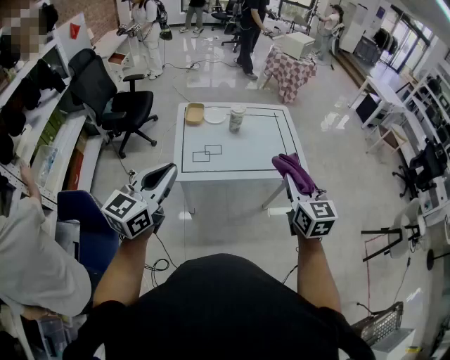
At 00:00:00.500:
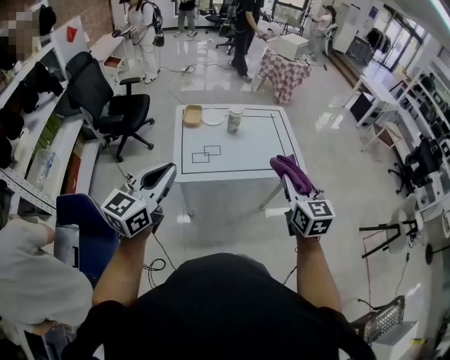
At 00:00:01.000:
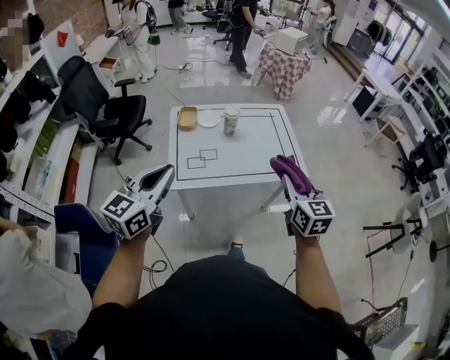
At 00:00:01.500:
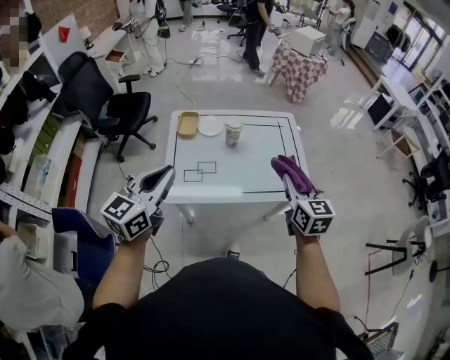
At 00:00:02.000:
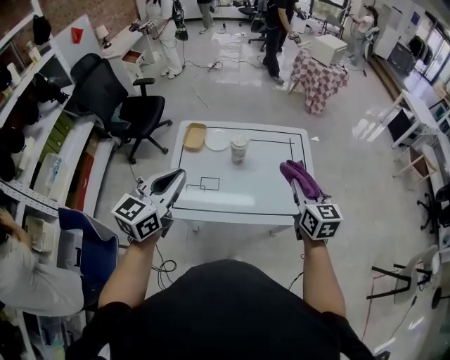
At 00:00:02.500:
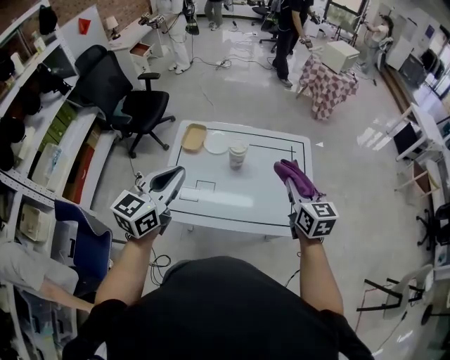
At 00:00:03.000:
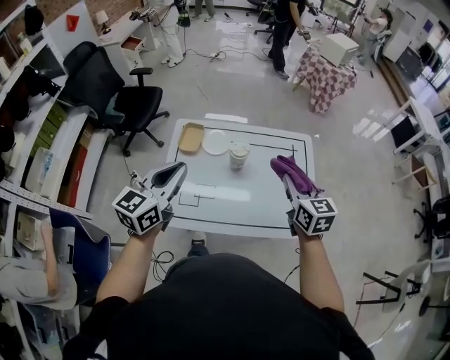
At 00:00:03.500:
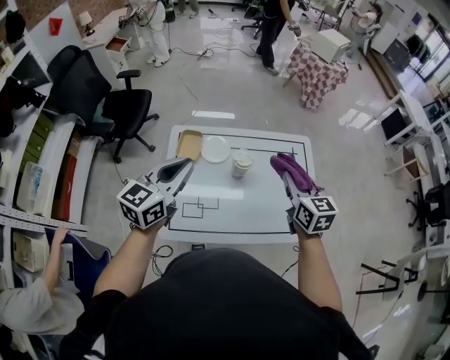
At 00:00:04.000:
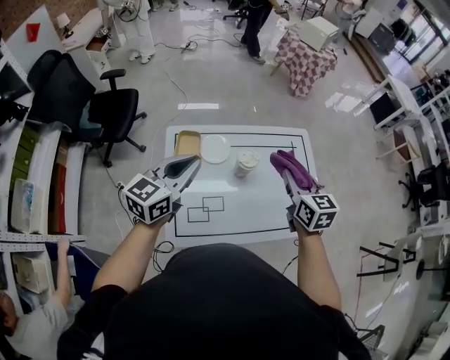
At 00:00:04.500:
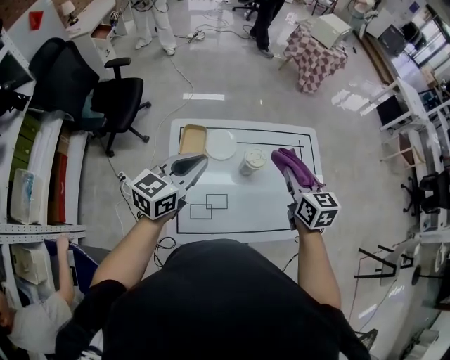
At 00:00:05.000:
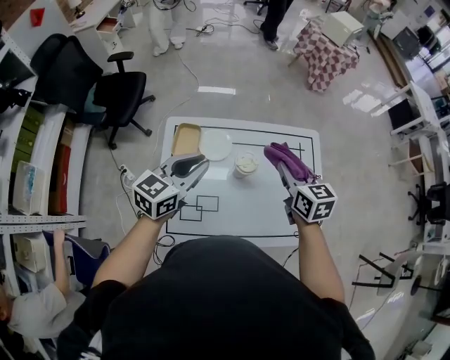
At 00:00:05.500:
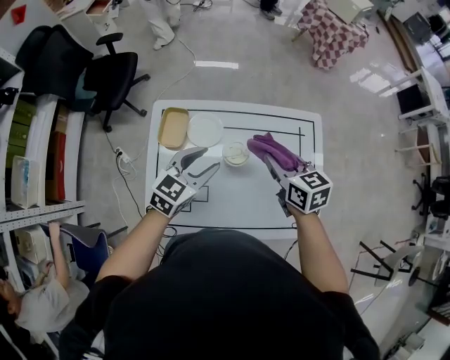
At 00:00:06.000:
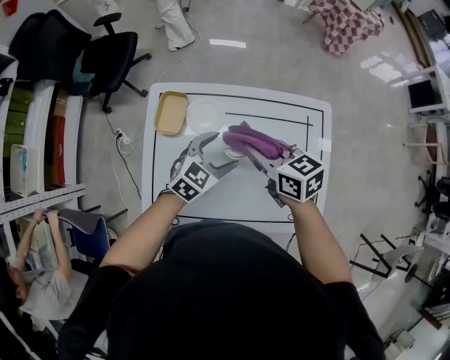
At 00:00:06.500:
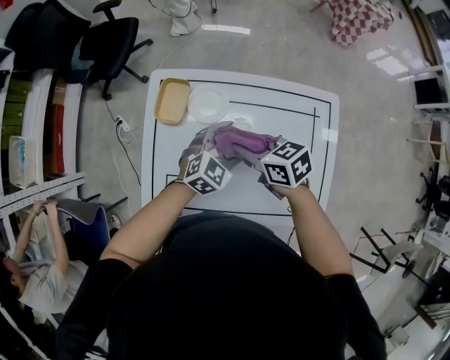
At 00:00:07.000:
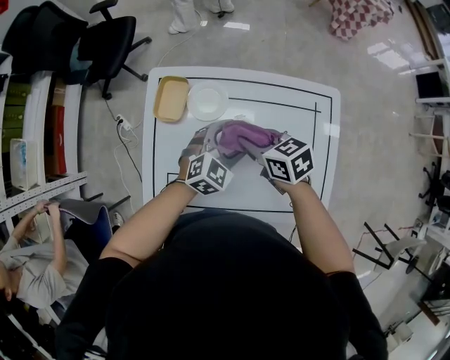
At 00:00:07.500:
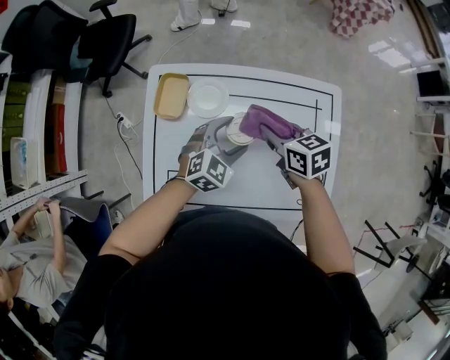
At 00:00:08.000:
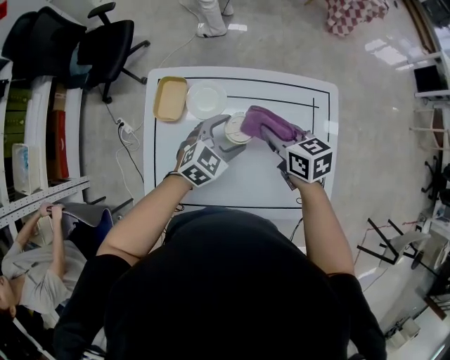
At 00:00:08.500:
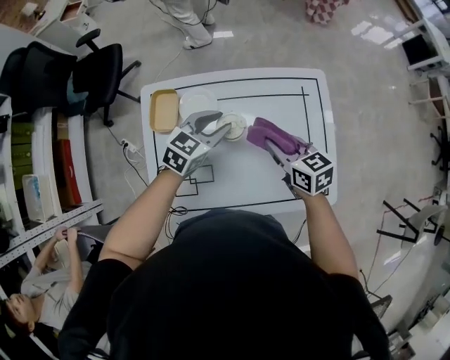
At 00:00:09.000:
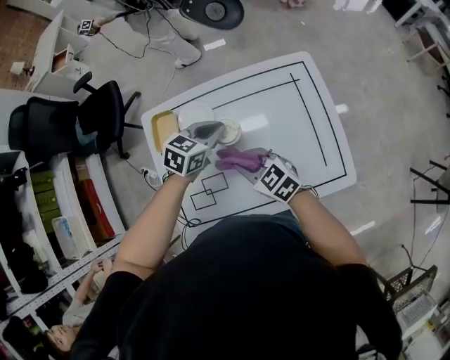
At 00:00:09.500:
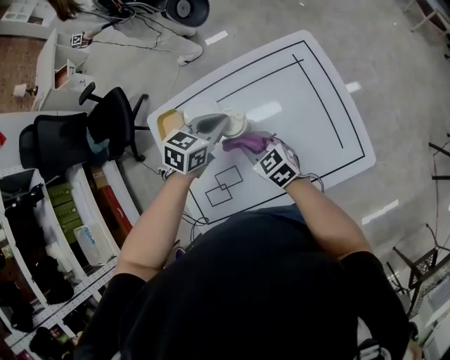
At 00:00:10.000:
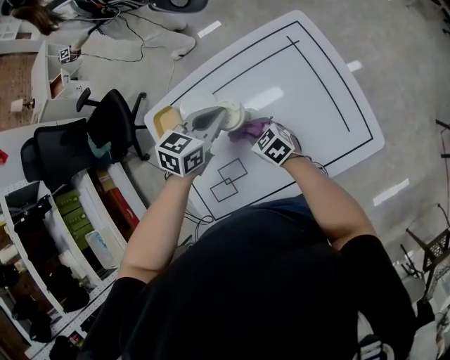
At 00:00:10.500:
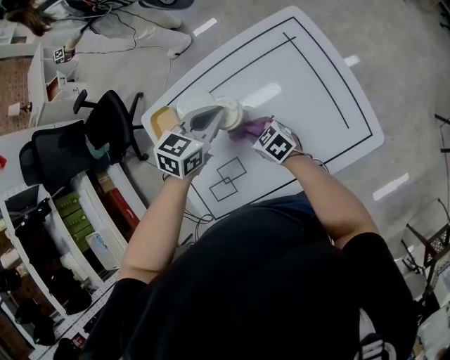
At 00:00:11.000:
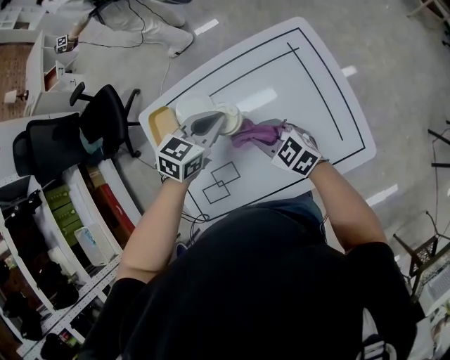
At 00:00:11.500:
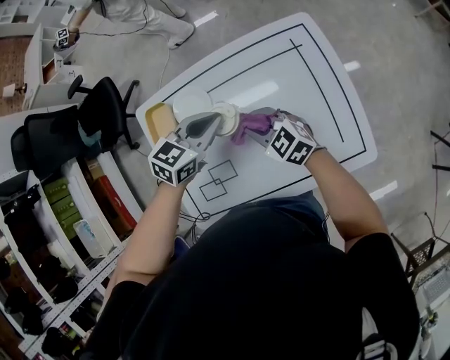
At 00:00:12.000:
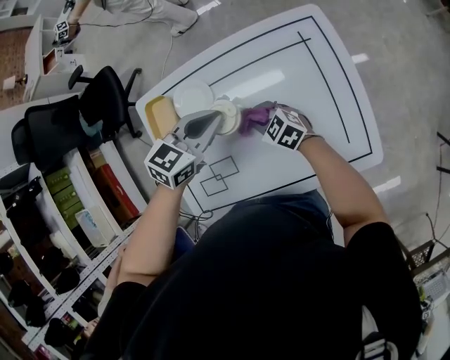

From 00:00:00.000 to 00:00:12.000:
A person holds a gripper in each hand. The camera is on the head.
From 00:00:00.000 to 00:00:02.000: Both grippers move forward, about 35 cm.
From 00:00:02.000 to 00:00:04.000: The grippers both shift forward and to the left by approximately 30 cm.
From 00:00:04.000 to 00:00:06.000: The left gripper shifts some 35 cm downward, to the right and forward, changes its angle by roughly 30 degrees, and opens its fingers. Meanwhile the right gripper moves forward and downward, about 20 cm, and changes its angle by about 40 degrees.
From 00:00:06.000 to 00:00:08.000: The right gripper is displaced downward by approximately 5 cm.
From 00:00:08.000 to 00:00:10.000: The left gripper ends up about 5 cm from where it was, and closes its fingers. Meanwhile the right gripper is displaced downward and backward by some 20 cm.
From 00:00:10.000 to 00:00:12.000: The right gripper travels upward and back again, some 10 cm each way, and turns by about 20 degrees.

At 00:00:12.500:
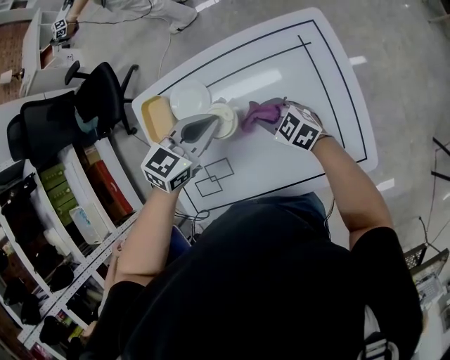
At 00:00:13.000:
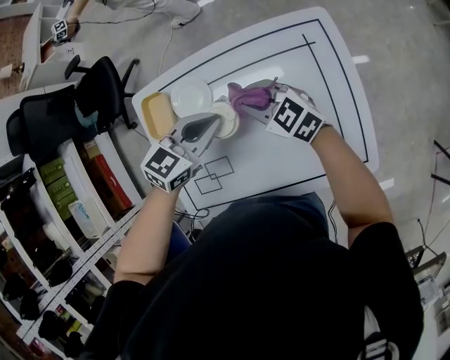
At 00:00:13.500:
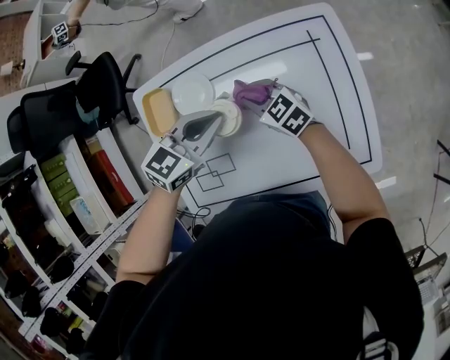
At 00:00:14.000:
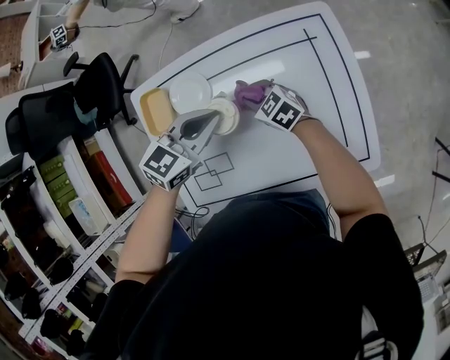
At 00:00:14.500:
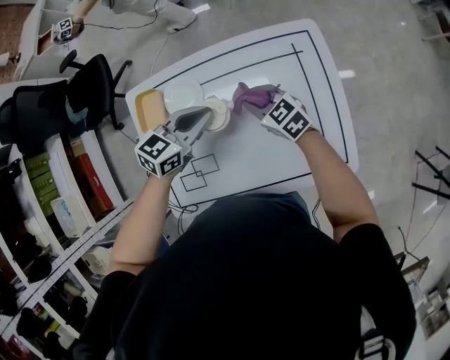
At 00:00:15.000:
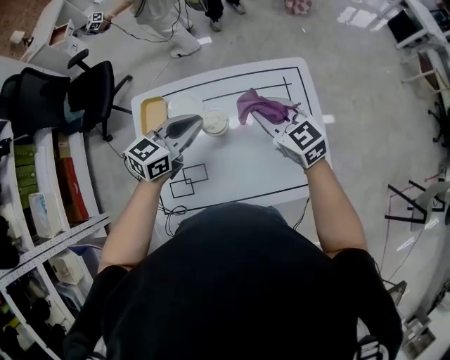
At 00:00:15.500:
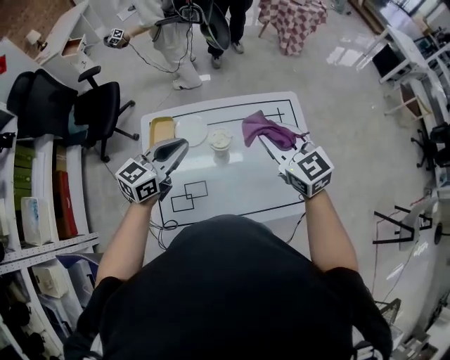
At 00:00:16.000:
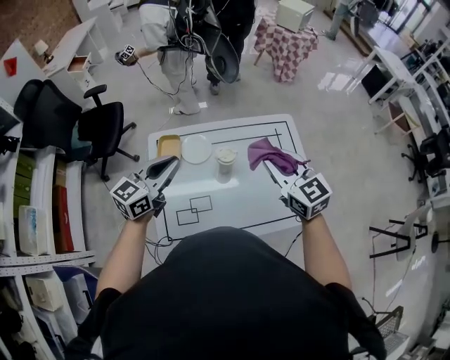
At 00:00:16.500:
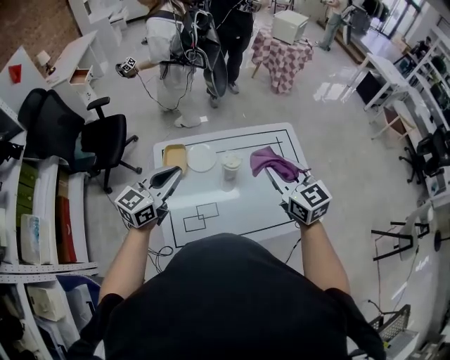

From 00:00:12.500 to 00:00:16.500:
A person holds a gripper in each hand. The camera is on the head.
From 00:00:12.500 to 00:00:14.500: The right gripper moves up and down over some 10 cm, changing direction 2 times.
From 00:00:14.500 to 00:00:16.500: The left gripper travels upward, to the left and backward by roughly 35 cm, and swivels some 30 degrees; the right gripper heads upward and backward, covering roughly 40 cm, and changes its angle by roughly 30 degrees.

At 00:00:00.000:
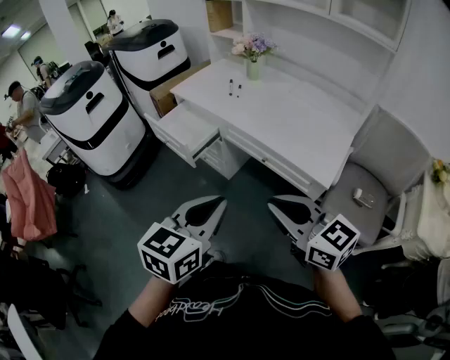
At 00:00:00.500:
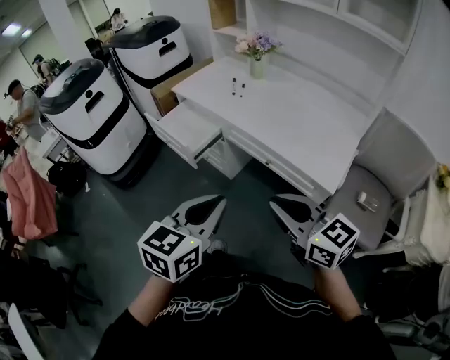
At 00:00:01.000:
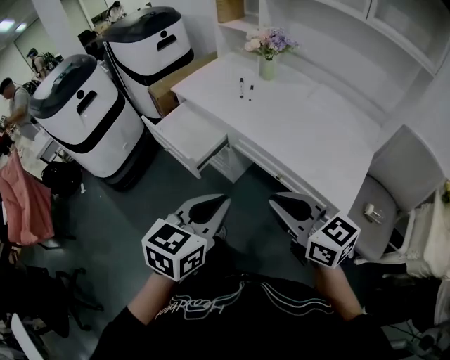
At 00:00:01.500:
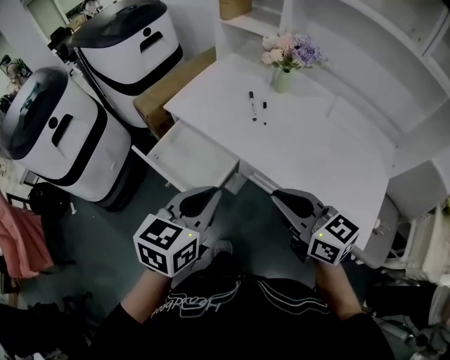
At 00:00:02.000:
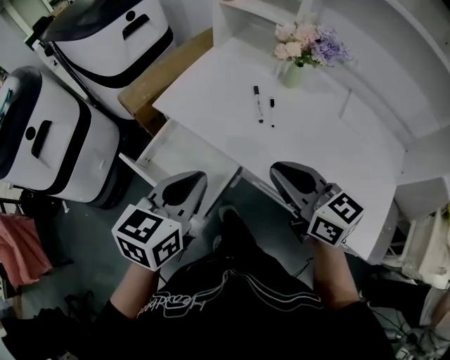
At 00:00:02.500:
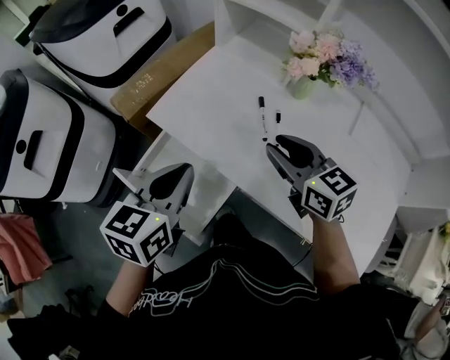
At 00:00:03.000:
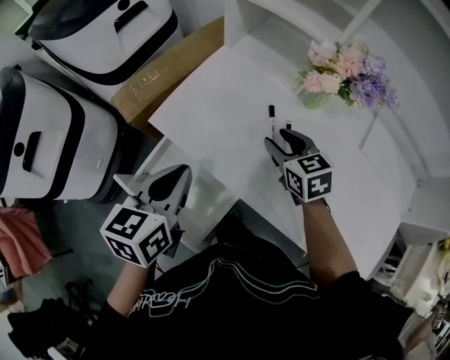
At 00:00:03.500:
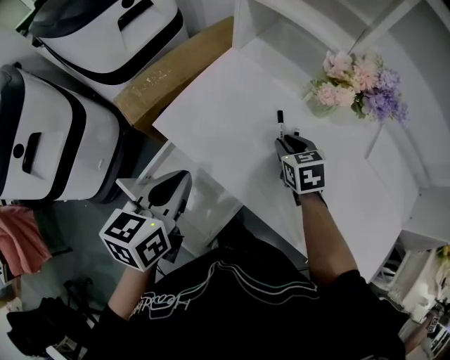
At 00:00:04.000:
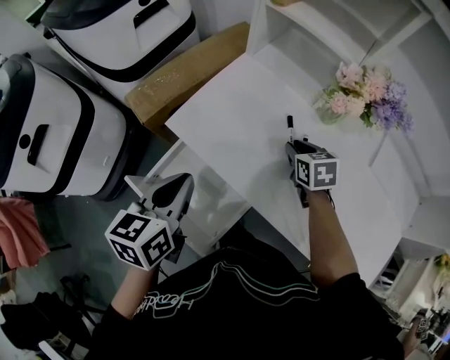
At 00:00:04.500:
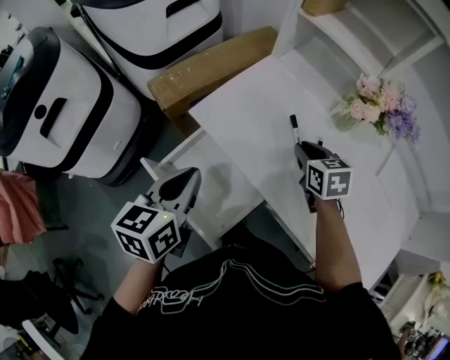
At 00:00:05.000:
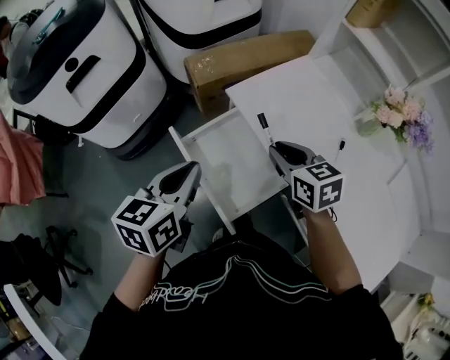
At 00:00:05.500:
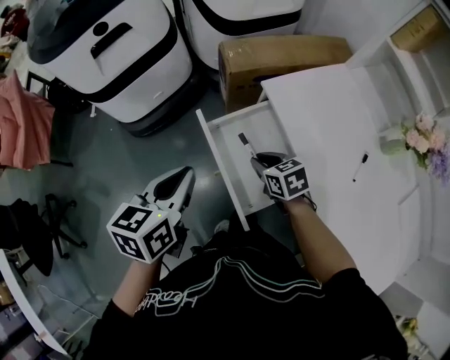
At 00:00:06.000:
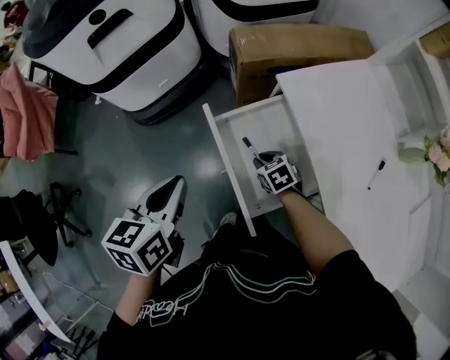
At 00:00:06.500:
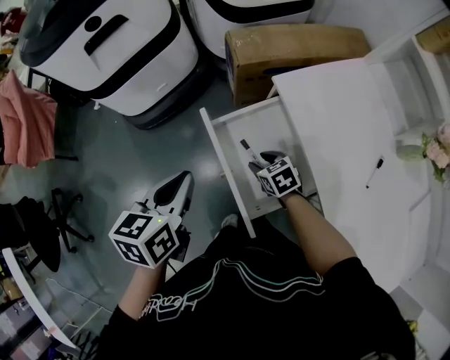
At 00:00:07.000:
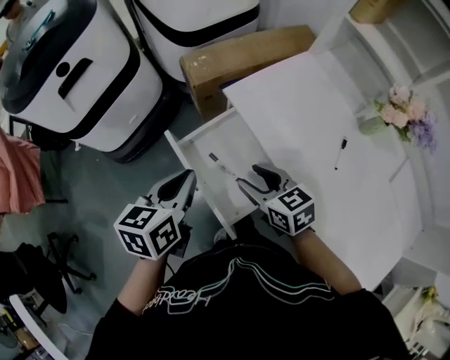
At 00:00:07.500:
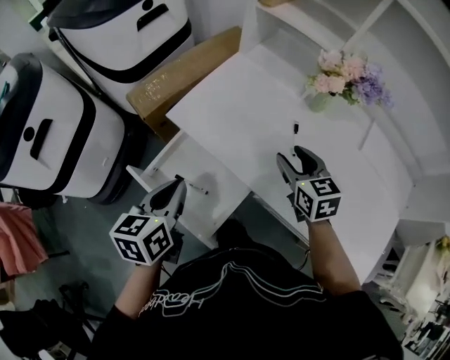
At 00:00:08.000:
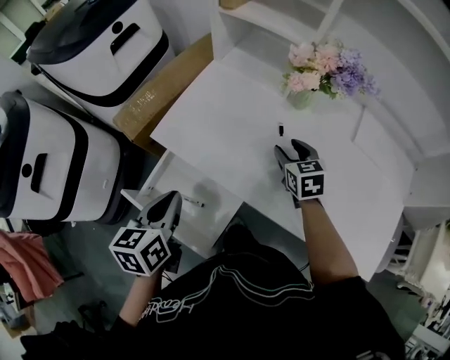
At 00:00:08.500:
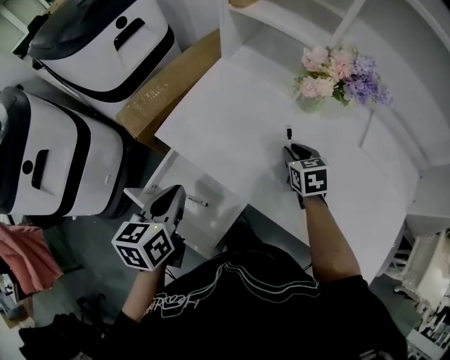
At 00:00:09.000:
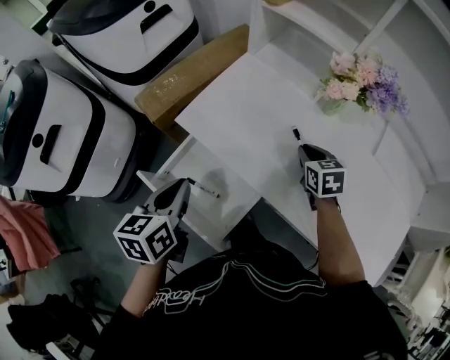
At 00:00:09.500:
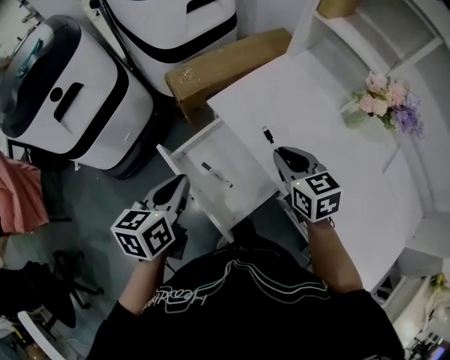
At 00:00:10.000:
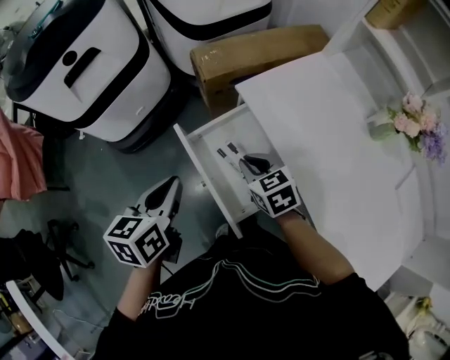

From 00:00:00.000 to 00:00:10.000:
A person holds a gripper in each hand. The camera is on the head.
From 00:00:00.000 to 00:00:02.000: The two grippers travel together, forward, approximately 60 cm.
From 00:00:02.000 to 00:00:04.000: The left gripper is displaced forward and to the left by about 20 cm, while the right gripper is displaced forward and downward by some 35 cm, points its fingers roughly 40 degrees further downward, and opens, then closes again.
From 00:00:04.000 to 00:00:06.000: The right gripper ends up approximately 40 cm from where it was, and swivels about 50 degrees. Meanwhile the left gripper shifts by roughly 25 cm, and changes its angle by approximately 30 degrees.
From 00:00:06.000 to 00:00:08.000: The right gripper shifts by about 40 cm, rotates some 60 degrees, and opens up; the left gripper shifts by approximately 25 cm, and turns by some 30 degrees.
From 00:00:08.000 to 00:00:10.000: The left gripper changes place by approximately 20 cm, and swivels roughly 30 degrees; the right gripper moves roughly 5 cm upward and comes back, changes its angle by roughly 50 degrees, and closes up.
